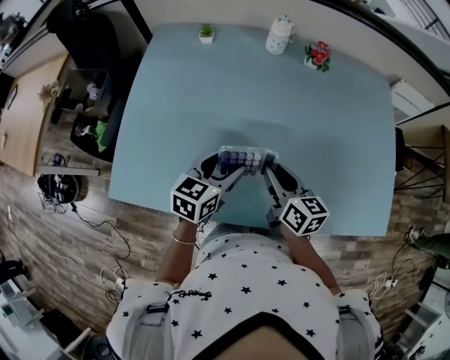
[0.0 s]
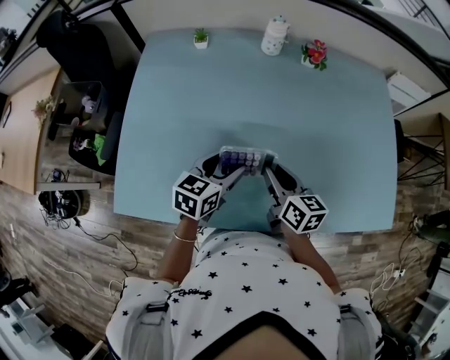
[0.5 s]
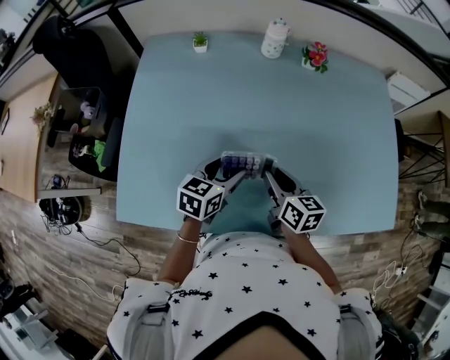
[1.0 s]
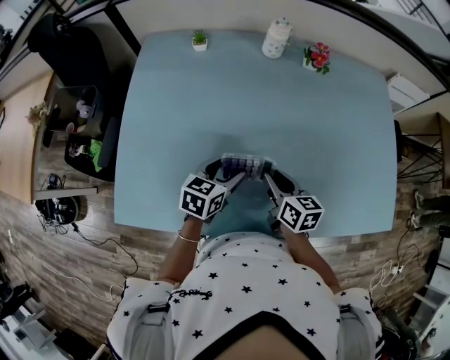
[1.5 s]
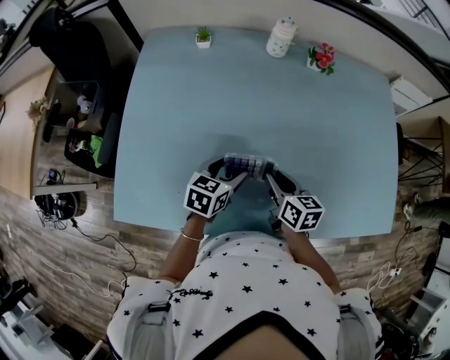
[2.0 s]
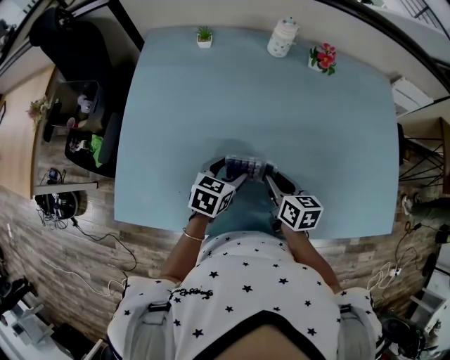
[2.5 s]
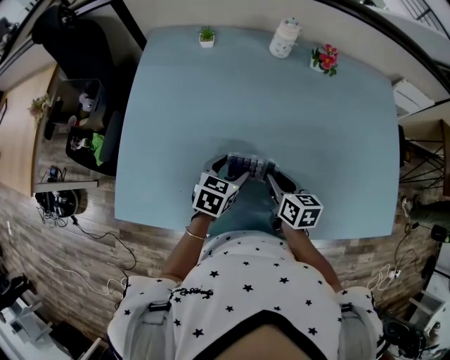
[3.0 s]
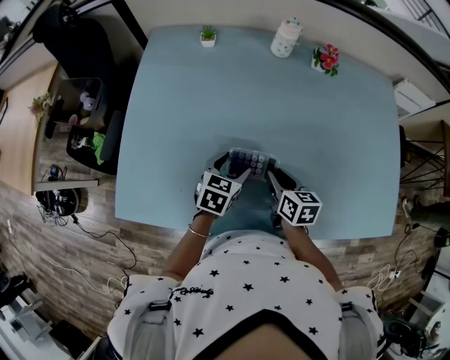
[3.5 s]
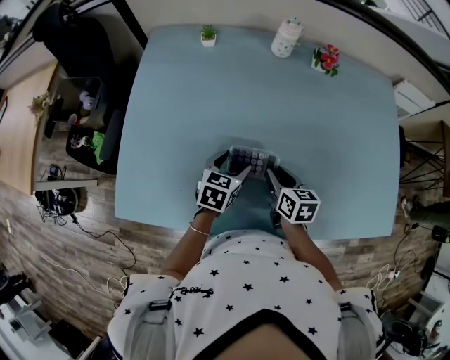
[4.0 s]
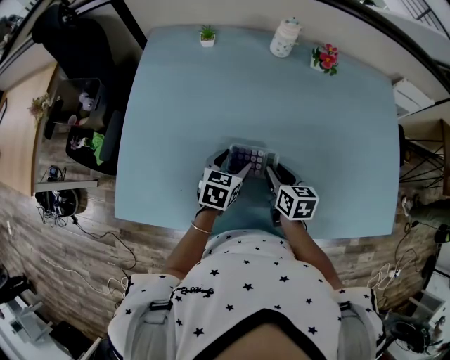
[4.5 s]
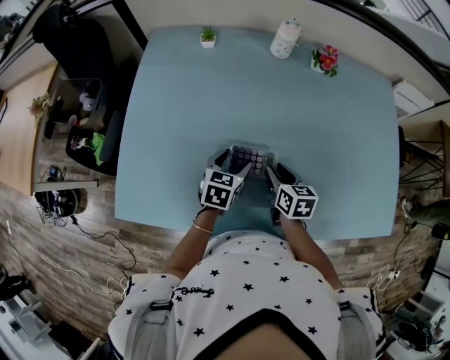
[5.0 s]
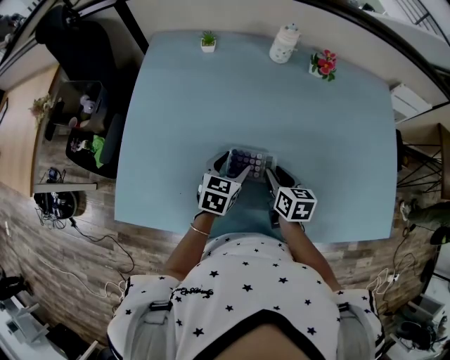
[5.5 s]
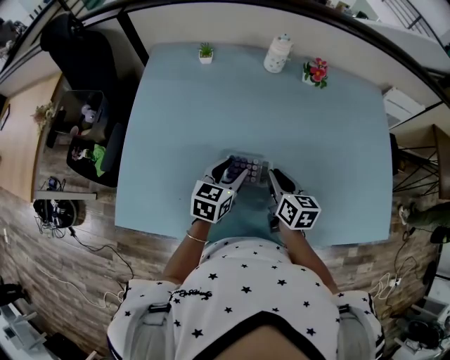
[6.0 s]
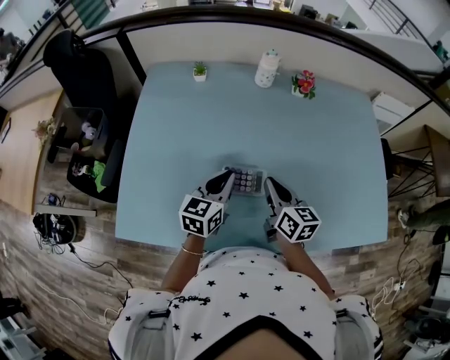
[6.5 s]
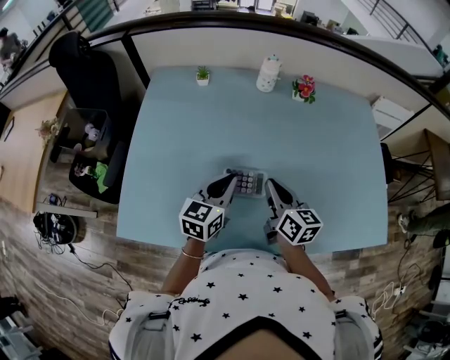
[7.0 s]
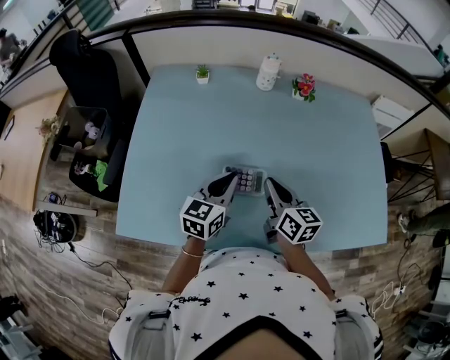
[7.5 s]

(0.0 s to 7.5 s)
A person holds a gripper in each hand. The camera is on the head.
0.0 s - 2.0 s: The two grippers go roughly 10 cm downward.
2.0 s - 5.5 s: The grippers move only a little.
5.5 s - 7.5 s: The grippers both shift upward by approximately 10 cm. The right gripper changes its angle by some 20 degrees, and closes its fingers. Meanwhile the left gripper closes its fingers.

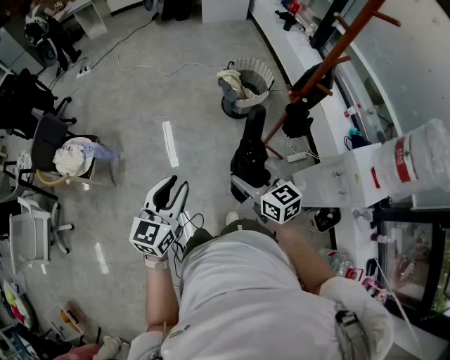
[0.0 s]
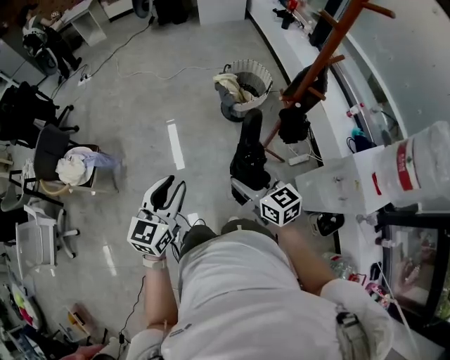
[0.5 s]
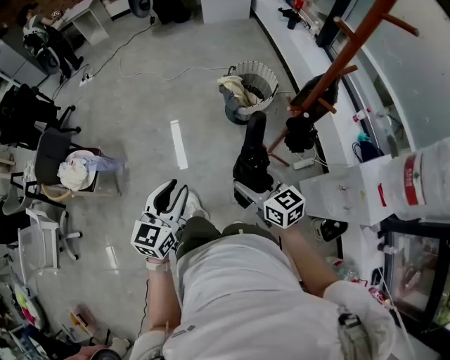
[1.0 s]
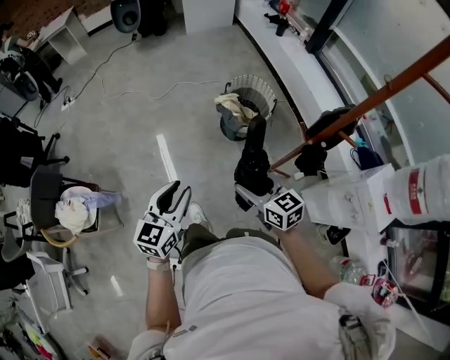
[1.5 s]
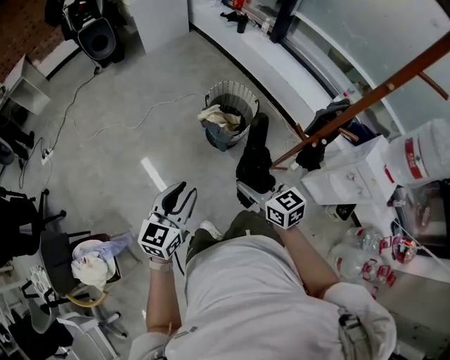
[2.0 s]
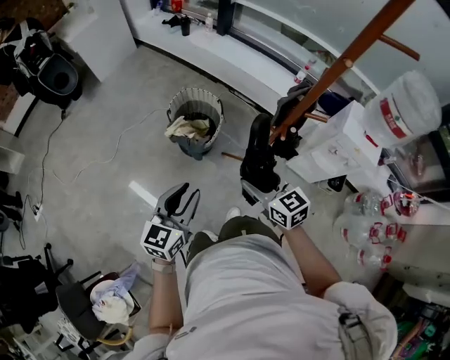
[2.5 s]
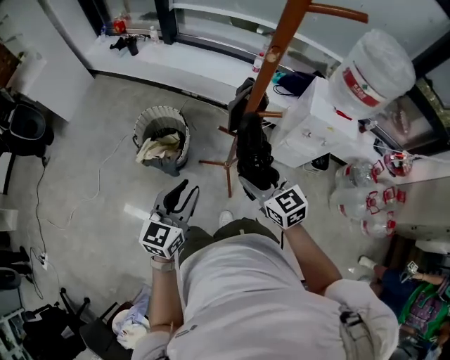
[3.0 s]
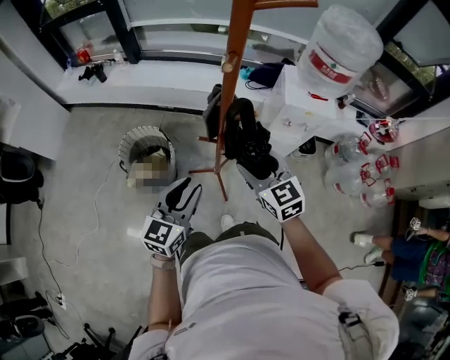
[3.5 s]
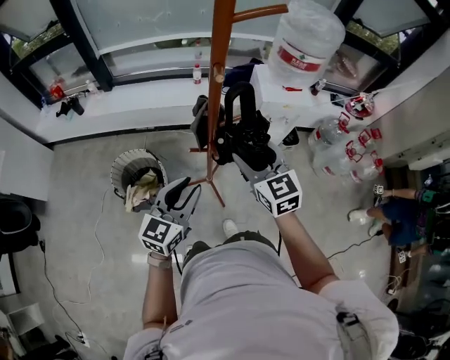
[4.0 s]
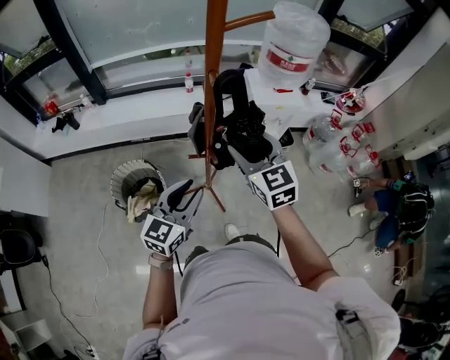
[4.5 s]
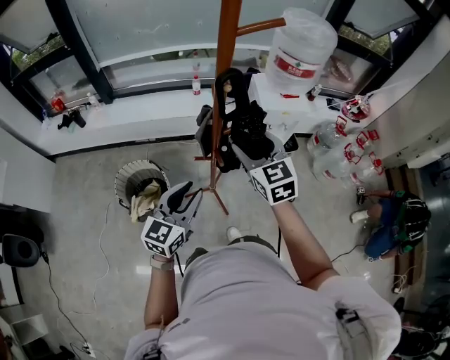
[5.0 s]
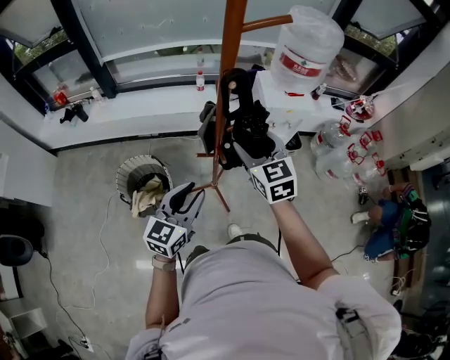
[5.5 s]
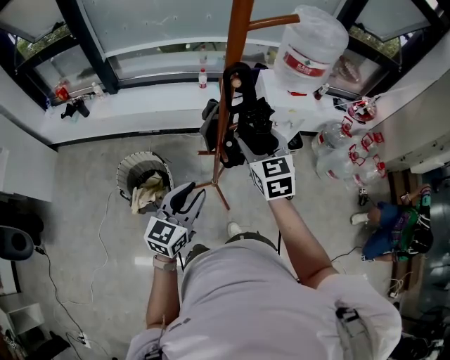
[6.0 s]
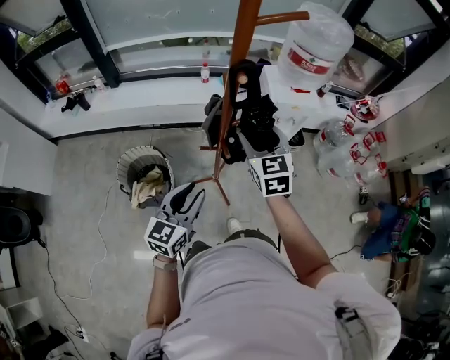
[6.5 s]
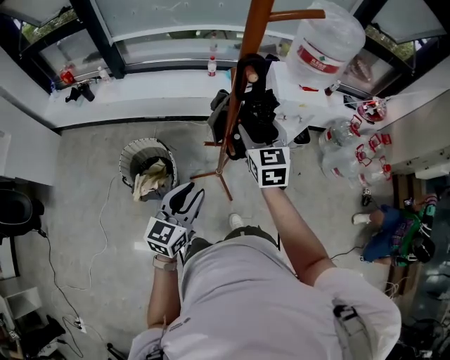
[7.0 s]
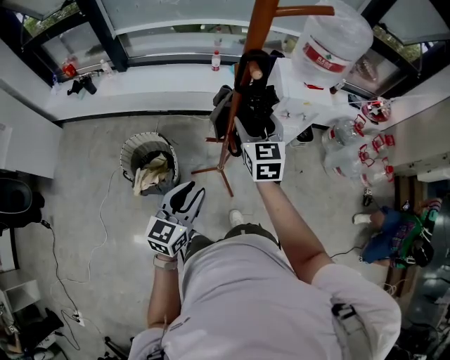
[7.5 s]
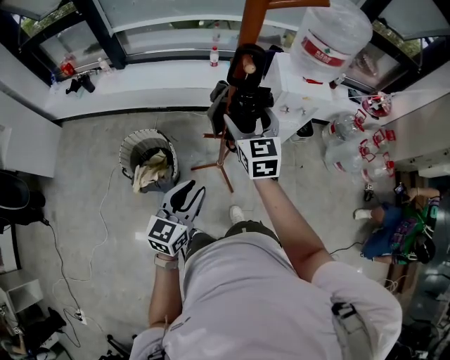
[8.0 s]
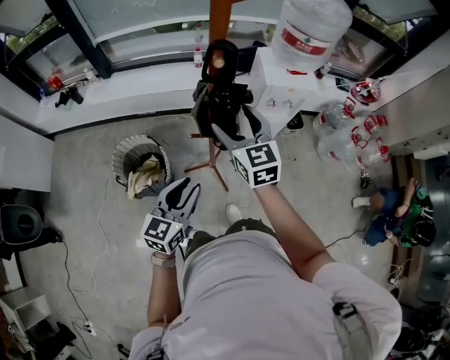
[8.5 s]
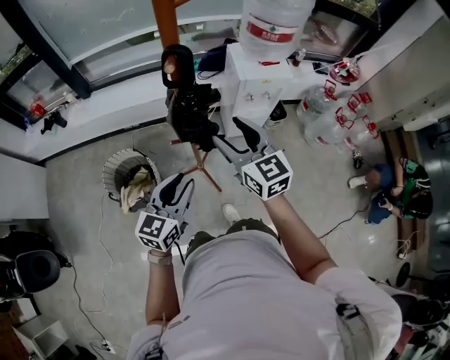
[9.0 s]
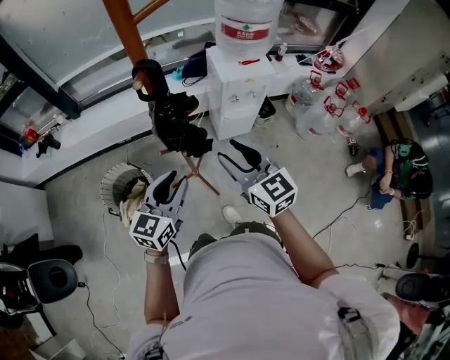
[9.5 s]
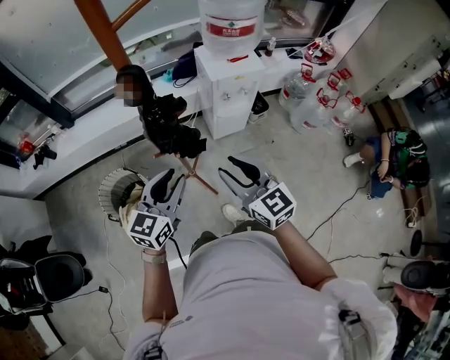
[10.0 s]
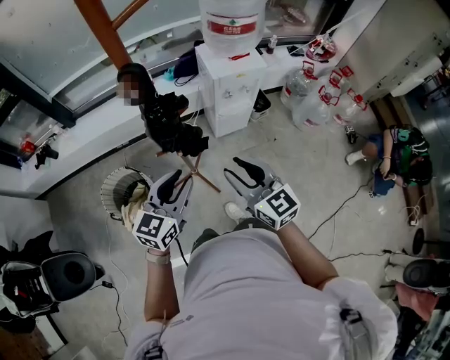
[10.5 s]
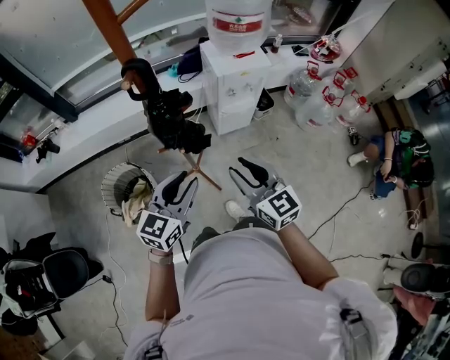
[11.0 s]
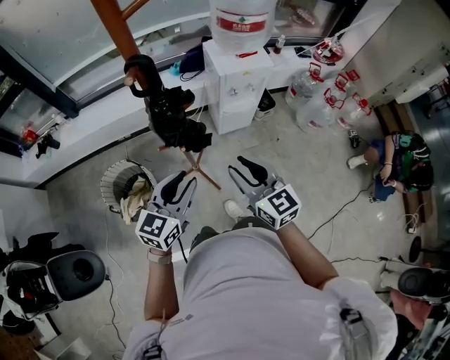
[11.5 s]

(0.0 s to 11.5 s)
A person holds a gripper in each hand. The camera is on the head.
0.0 s - 2.0 s: The left gripper changes place by approximately 40 cm, and changes its angle by some 30 degrees; the right gripper changes place by some 30 cm, and swivels some 20 degrees.
2.0 s - 4.0 s: The left gripper shifts by about 30 cm, and swivels approximately 60 degrees. The right gripper shifts by about 30 cm, and changes its angle by roughly 70 degrees.
4.0 s - 6.0 s: The grippers make only small movements.
6.0 s - 7.5 s: The right gripper changes place by some 5 cm.
7.5 s - 9.5 s: The left gripper heads to the right, covering approximately 10 cm, while the right gripper travels backward and to the right by about 15 cm.
9.5 s - 11.5 s: The right gripper changes place by some 5 cm.

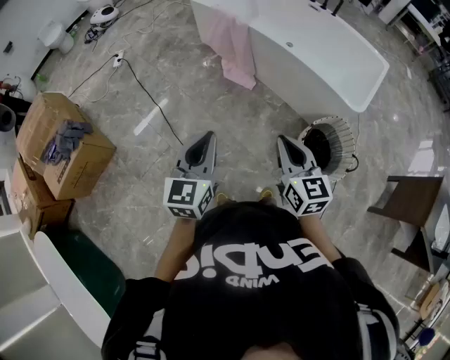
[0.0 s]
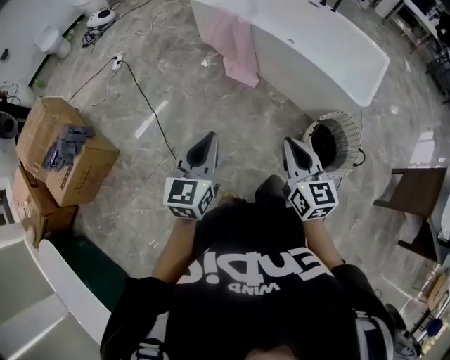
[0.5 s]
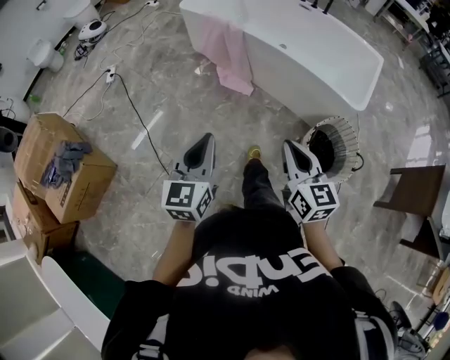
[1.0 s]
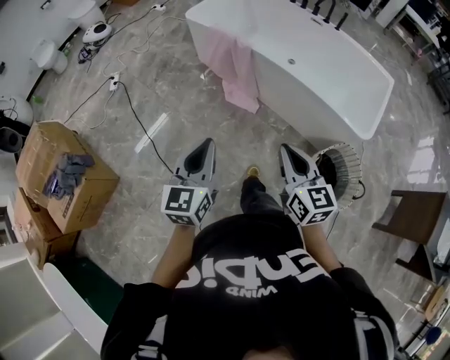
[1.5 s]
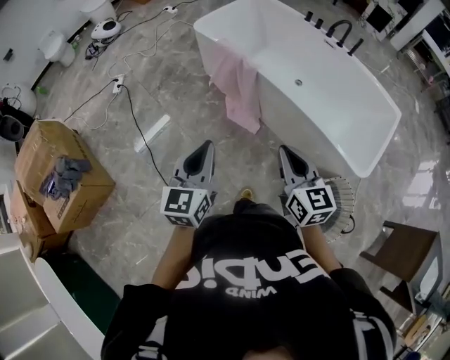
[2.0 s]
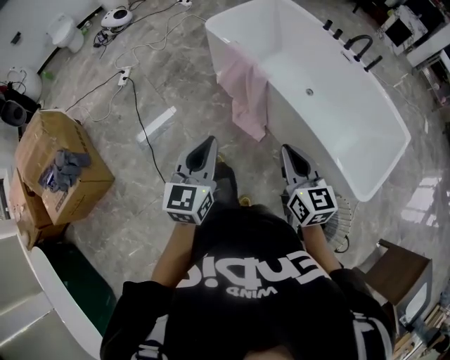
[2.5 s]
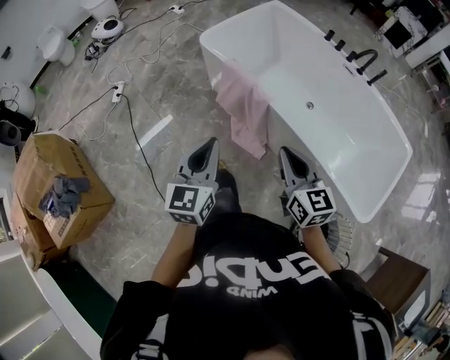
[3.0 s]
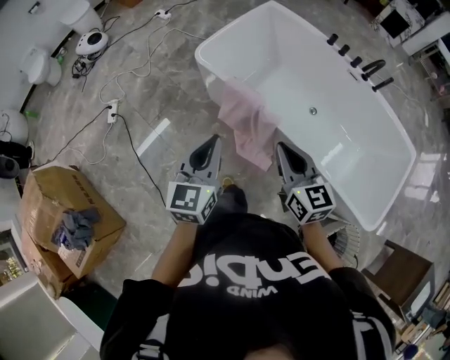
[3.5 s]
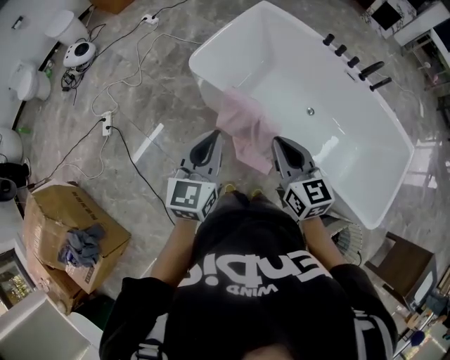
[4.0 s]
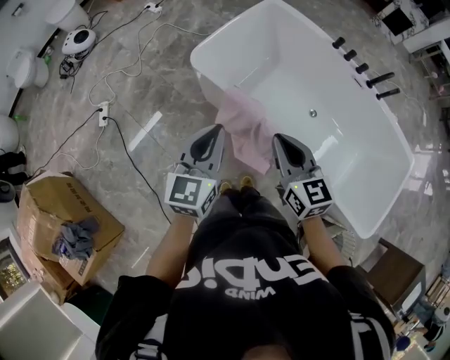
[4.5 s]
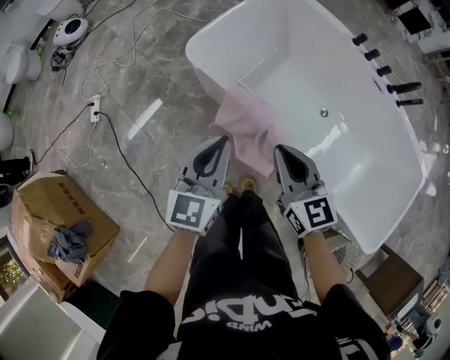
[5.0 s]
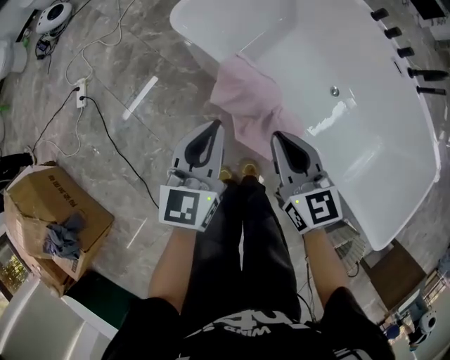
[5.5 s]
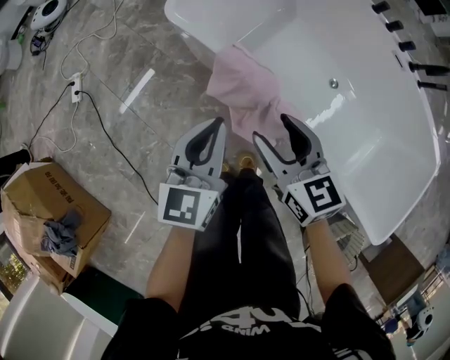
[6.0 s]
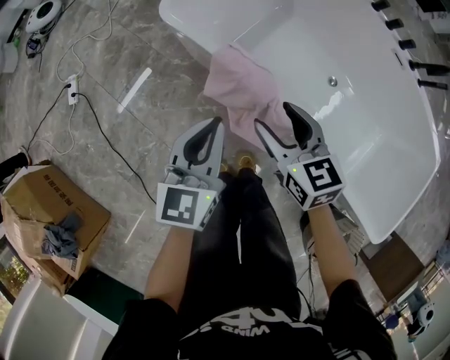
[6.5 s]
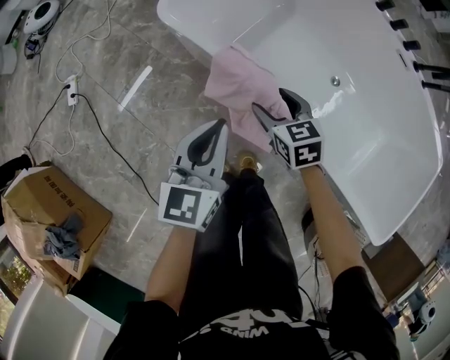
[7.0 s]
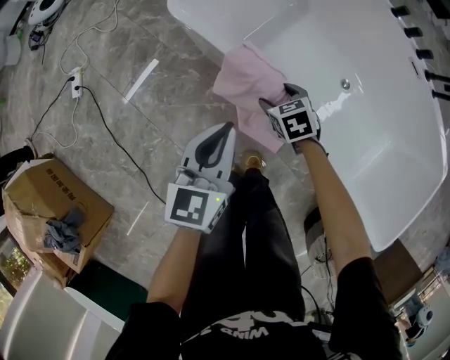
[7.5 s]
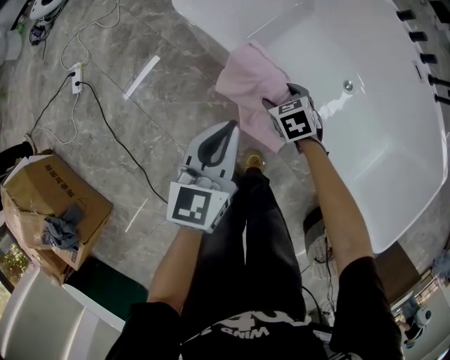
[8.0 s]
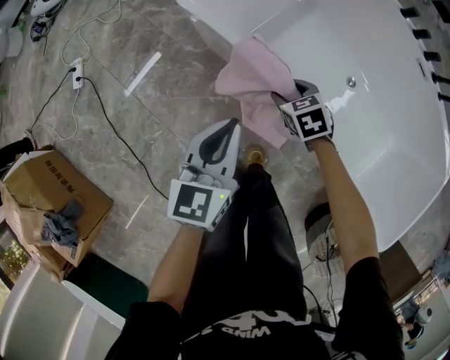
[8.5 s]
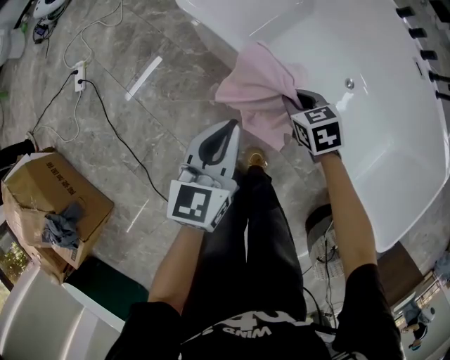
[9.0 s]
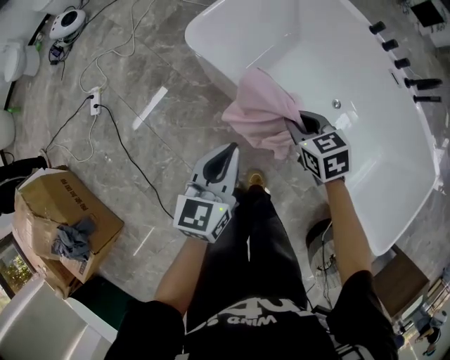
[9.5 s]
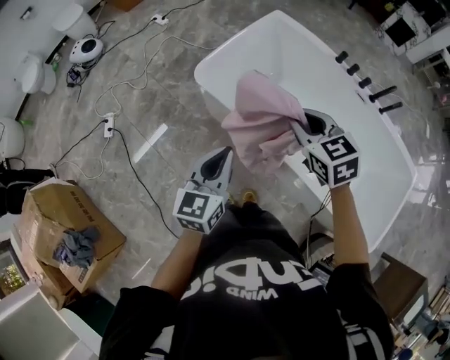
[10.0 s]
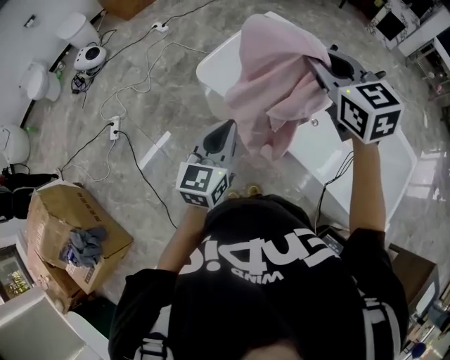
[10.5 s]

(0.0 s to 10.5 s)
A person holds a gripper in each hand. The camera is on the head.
0.0 s - 2.0 s: The grippers both shift forward by roughly 30 cm.
2.0 s - 4.0 s: The two grippers travel together, forward, about 50 cm.
4.0 s - 6.5 s: Both grippers move downward and forward, approximately 25 cm. The right gripper opens.
6.5 s - 8.5 s: The right gripper moves downward, some 20 cm, and changes its angle by roughly 30 degrees. Meanwhile the left gripper goes approximately 5 cm downward.
8.5 s - 10.5 s: The right gripper shifts roughly 60 cm upward, tilts its fingers roughly 40 degrees upward, and closes its fingers; the left gripper shifts about 30 cm upward.
